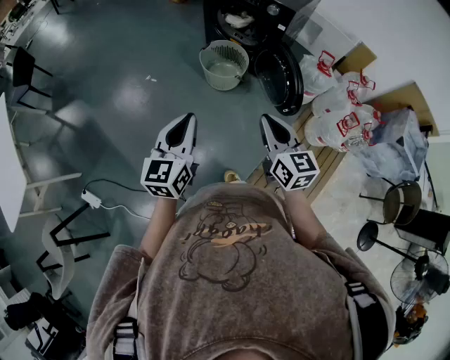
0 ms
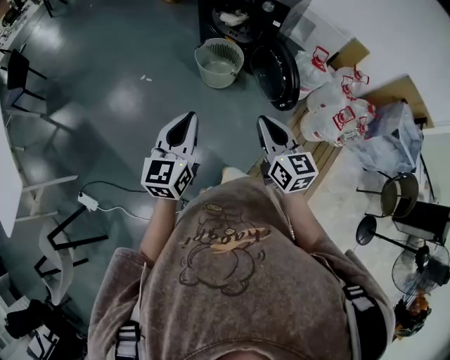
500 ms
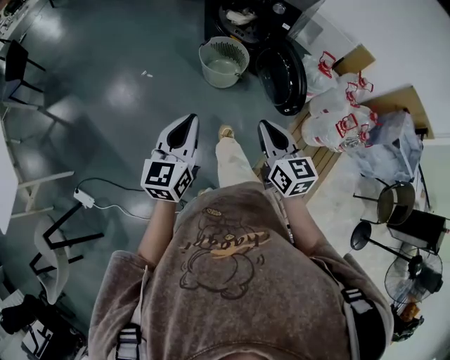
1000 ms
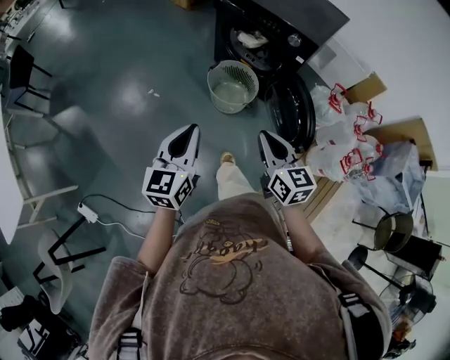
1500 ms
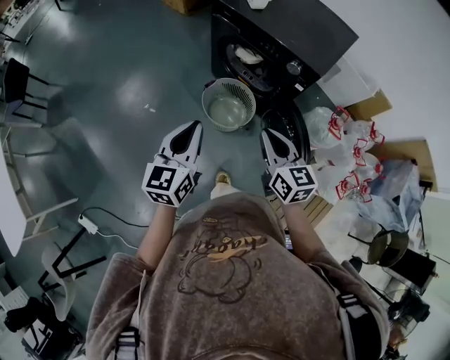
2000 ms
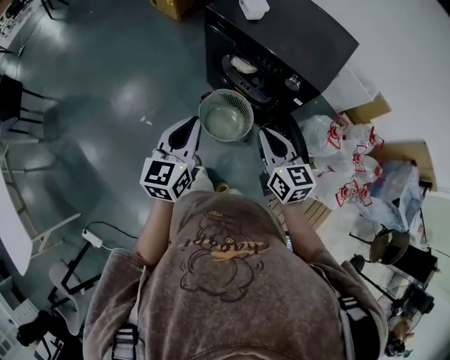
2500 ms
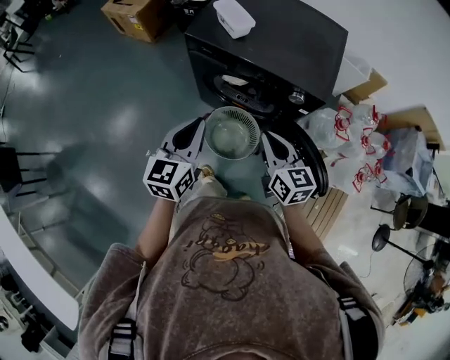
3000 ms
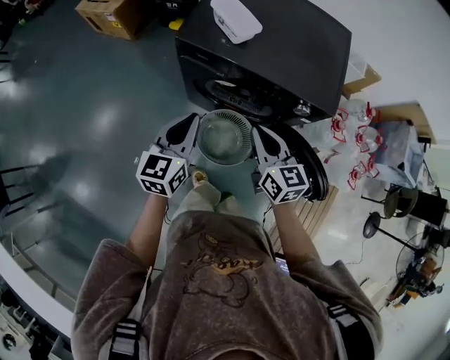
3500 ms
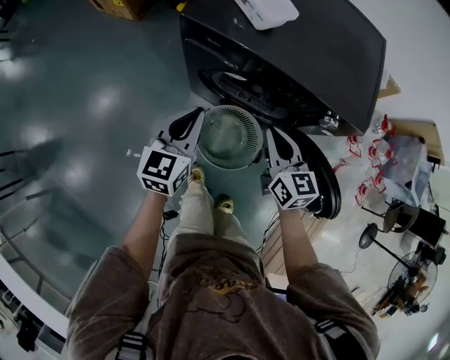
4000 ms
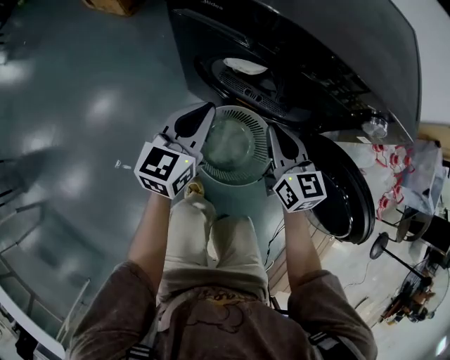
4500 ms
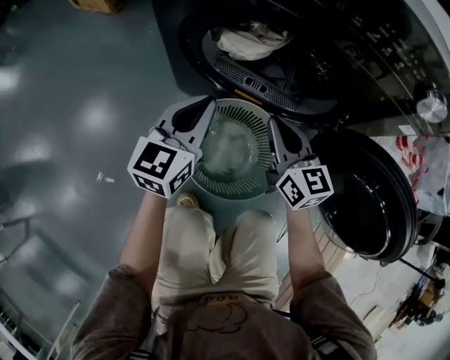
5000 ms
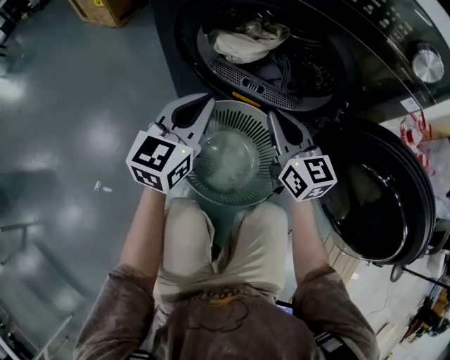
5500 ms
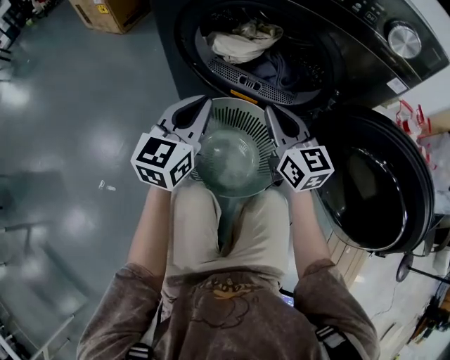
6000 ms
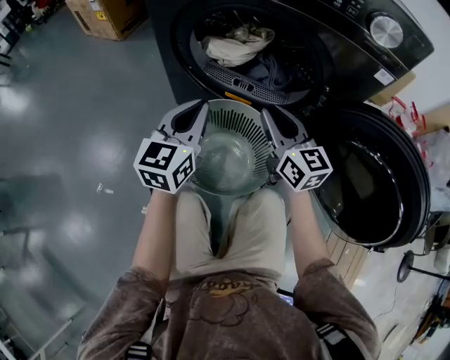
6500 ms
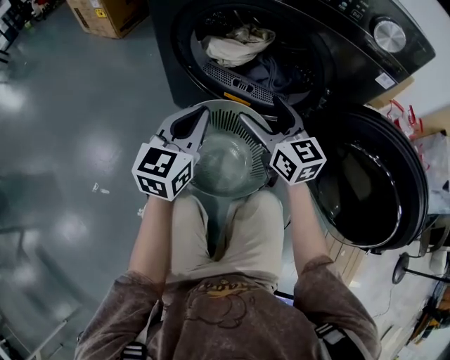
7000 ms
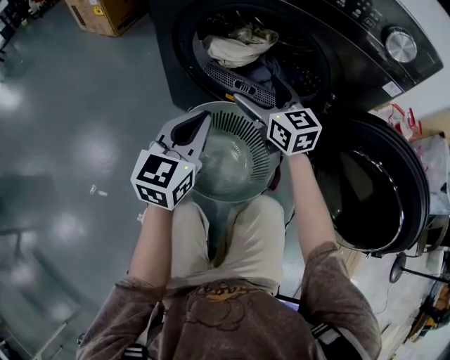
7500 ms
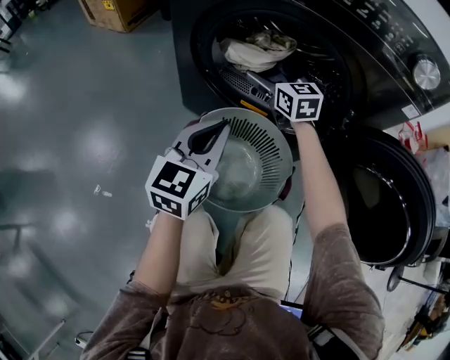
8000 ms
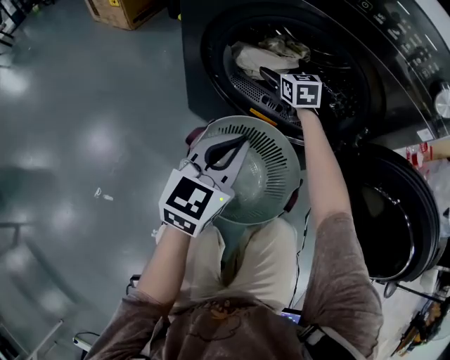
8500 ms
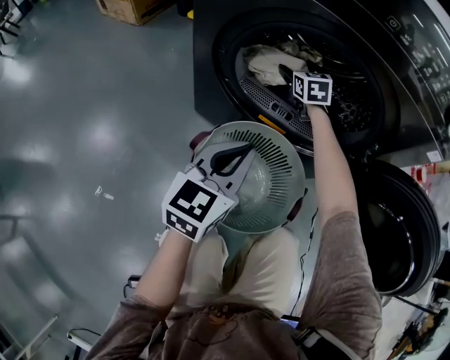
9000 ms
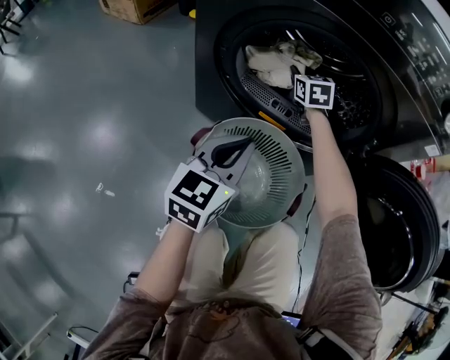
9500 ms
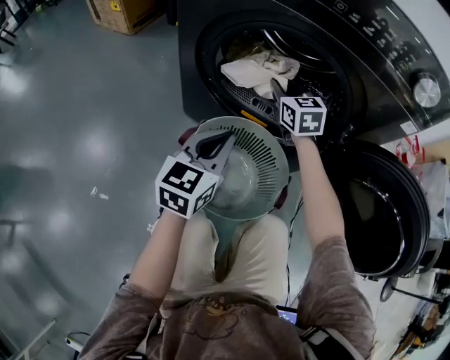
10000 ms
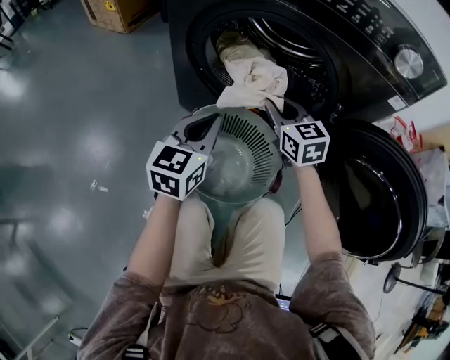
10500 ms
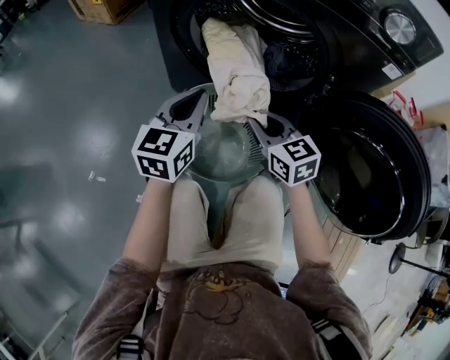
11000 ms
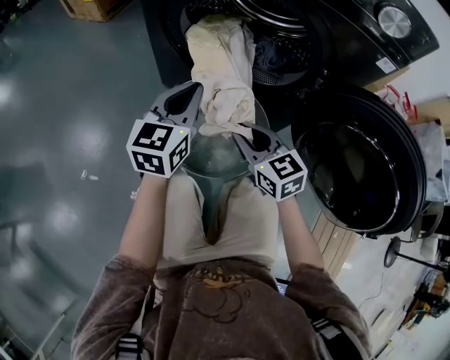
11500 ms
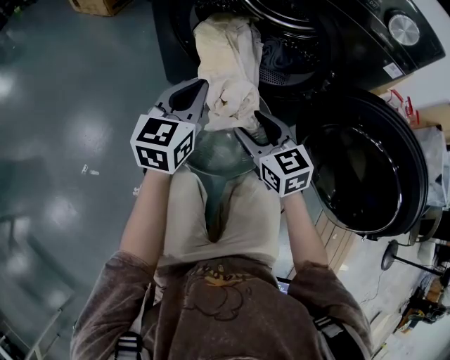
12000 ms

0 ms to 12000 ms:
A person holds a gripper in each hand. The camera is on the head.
0 ms to 2000 ms: The two grippers go about 35 cm forward.
2000 ms to 4000 ms: The grippers both shift forward and downward by roughly 40 cm. The right gripper turns by approximately 20 degrees. The left gripper changes its angle by some 30 degrees.
4000 ms to 6000 ms: The two grippers go about 30 cm downward.
6000 ms to 8000 ms: The right gripper goes some 20 cm forward, and opens.
8000 ms to 10000 ms: The right gripper travels forward and back again, approximately 10 cm each way, and closes.
10000 ms to 12000 ms: The right gripper moves backward, roughly 25 cm, and opens up.

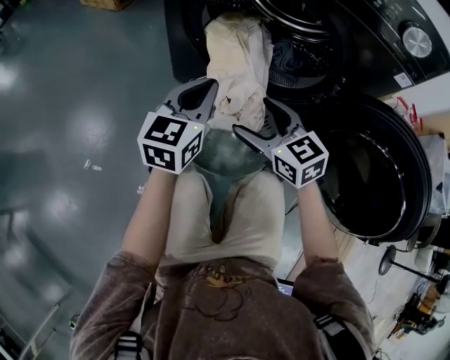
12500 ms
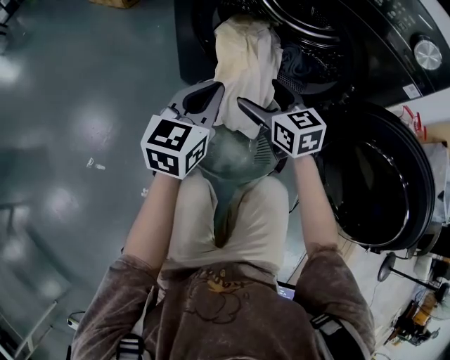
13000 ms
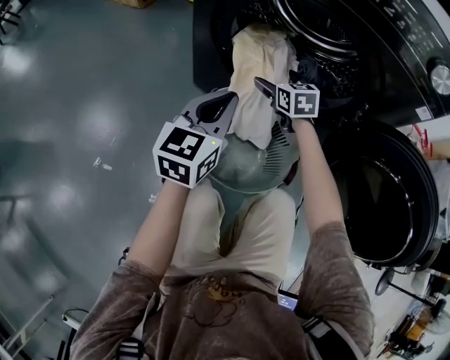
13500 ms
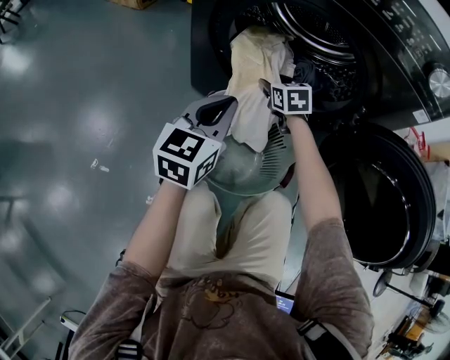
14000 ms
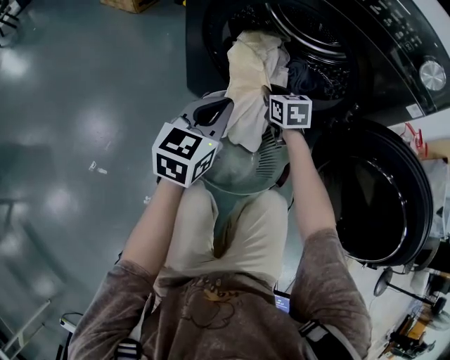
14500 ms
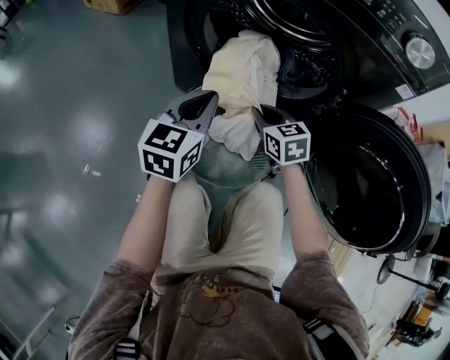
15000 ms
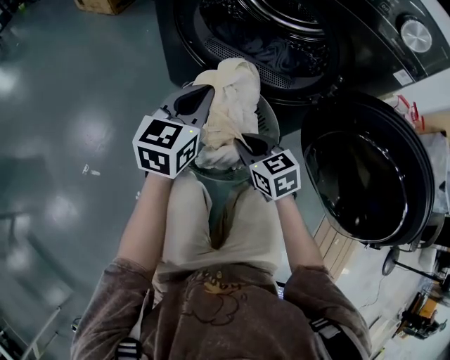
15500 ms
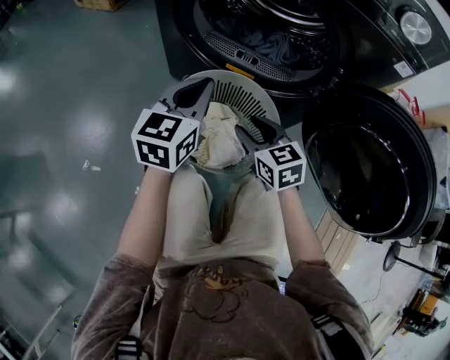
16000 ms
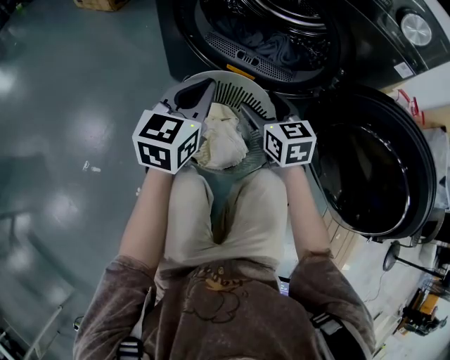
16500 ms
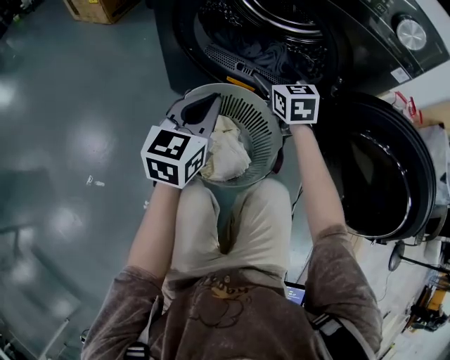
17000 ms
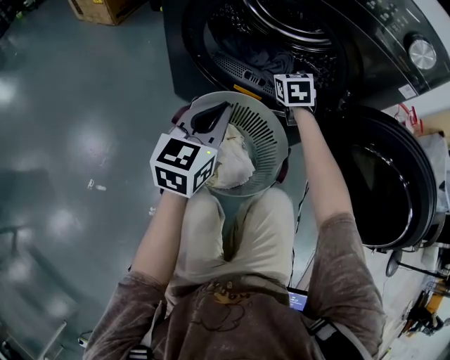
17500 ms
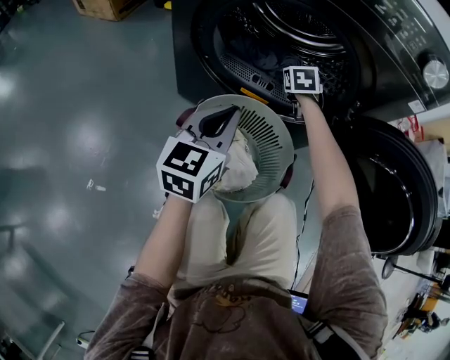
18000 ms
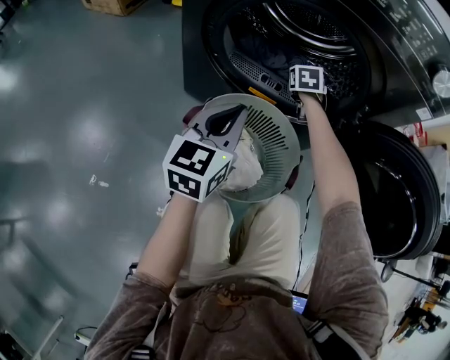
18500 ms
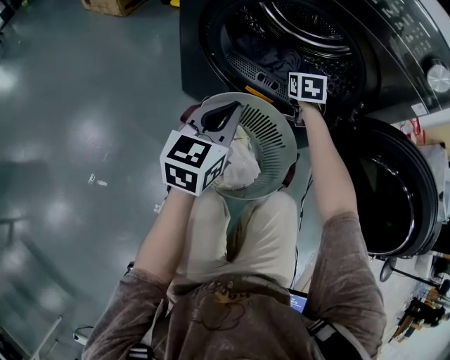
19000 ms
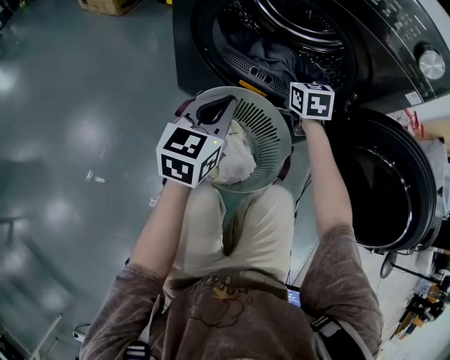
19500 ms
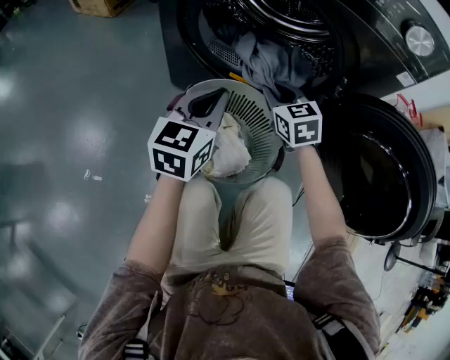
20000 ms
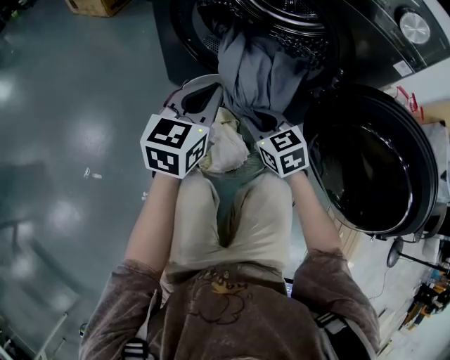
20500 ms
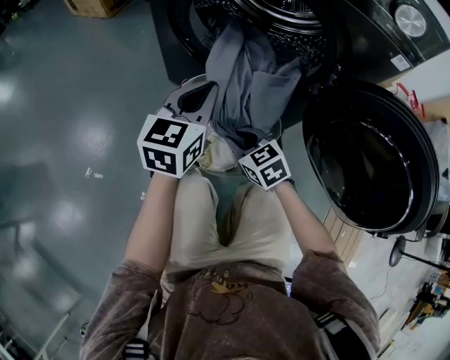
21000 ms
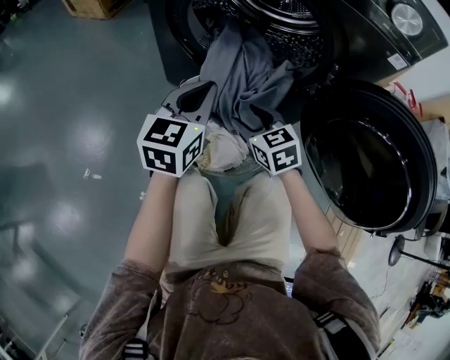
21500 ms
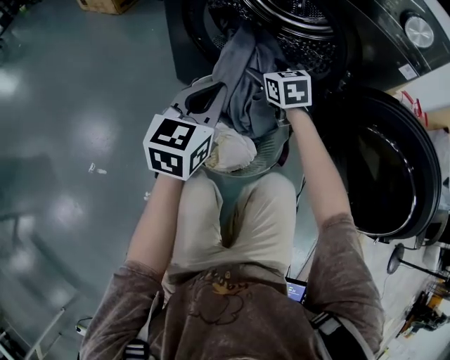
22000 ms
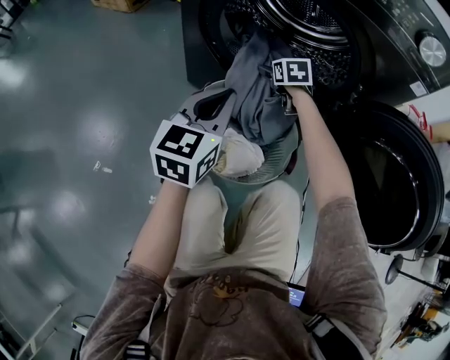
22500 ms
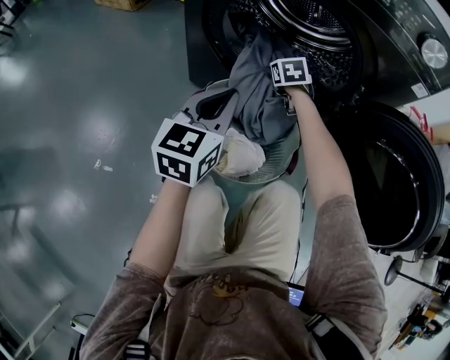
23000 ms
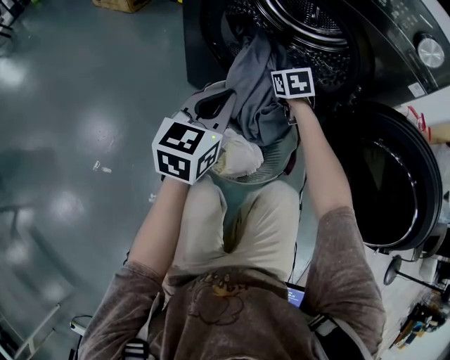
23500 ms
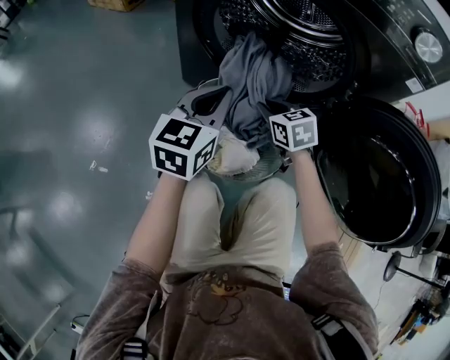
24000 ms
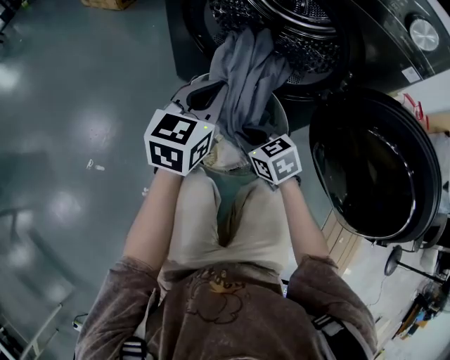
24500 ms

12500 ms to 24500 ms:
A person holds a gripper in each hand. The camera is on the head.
12500 ms to 14500 ms: The right gripper shifts roughly 20 cm forward and downward, changes its angle by about 20 degrees, and closes its fingers.
14500 ms to 16500 ms: The right gripper goes some 15 cm backward, and opens its fingers.
16500 ms to 18500 ms: The right gripper heads forward, covering about 25 cm, and swivels roughly 40 degrees.
18500 ms to 20500 ms: The right gripper moves backward, roughly 25 cm, and swivels approximately 40 degrees.
20500 ms to 22500 ms: The right gripper heads forward, covering approximately 20 cm, changes its angle by roughly 20 degrees, and opens its fingers.
22500 ms to 24500 ms: The right gripper heads backward, covering some 25 cm, changes its angle by approximately 30 degrees, and closes up.

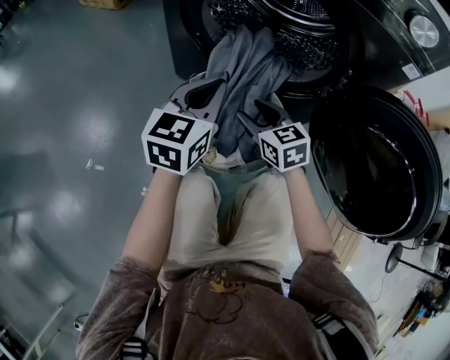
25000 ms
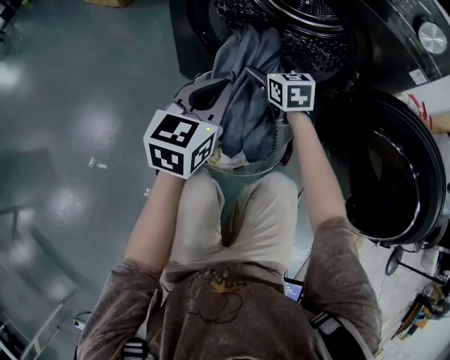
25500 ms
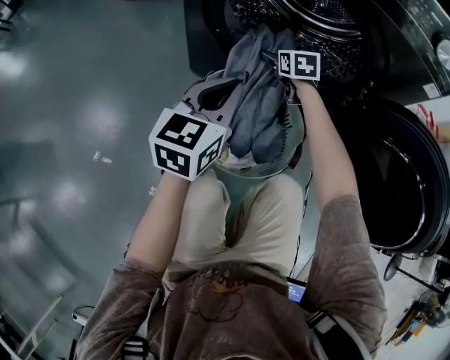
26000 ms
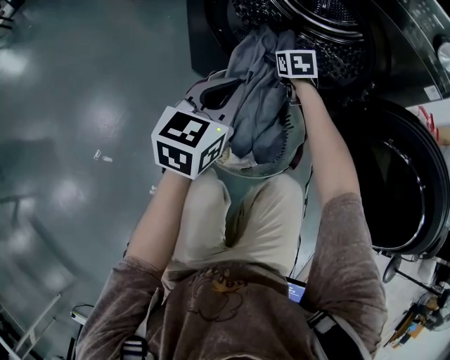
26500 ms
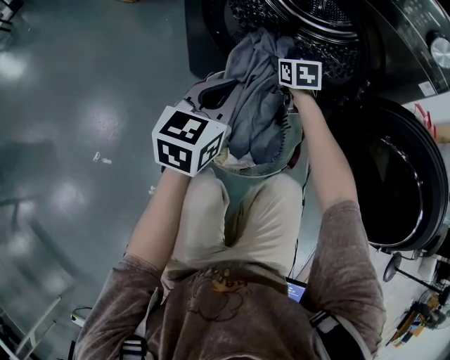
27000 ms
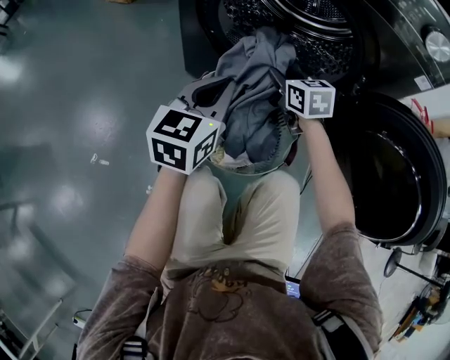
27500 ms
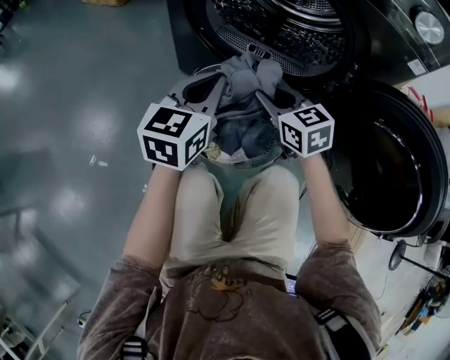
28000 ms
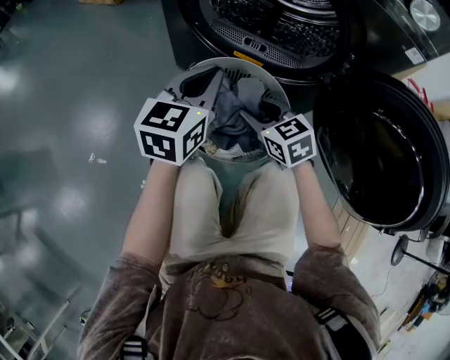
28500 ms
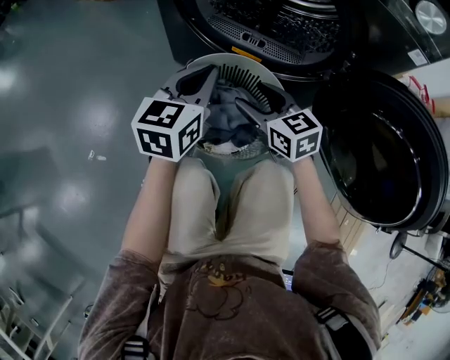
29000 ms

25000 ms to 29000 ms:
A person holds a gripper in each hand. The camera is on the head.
25000 ms to 27000 ms: The right gripper travels forward by some 20 cm, and opens, then closes once more.
27000 ms to 29000 ms: The right gripper travels backward by about 20 cm, swivels approximately 20 degrees, and opens.
